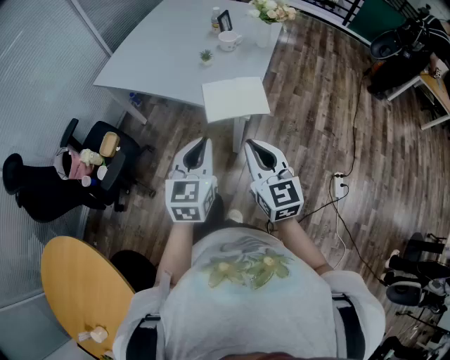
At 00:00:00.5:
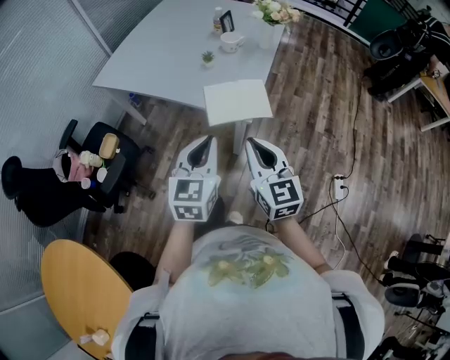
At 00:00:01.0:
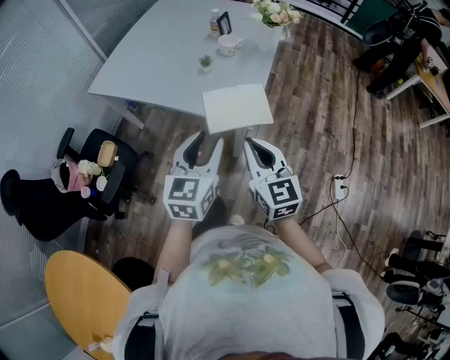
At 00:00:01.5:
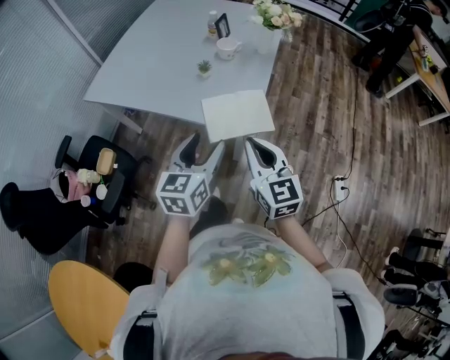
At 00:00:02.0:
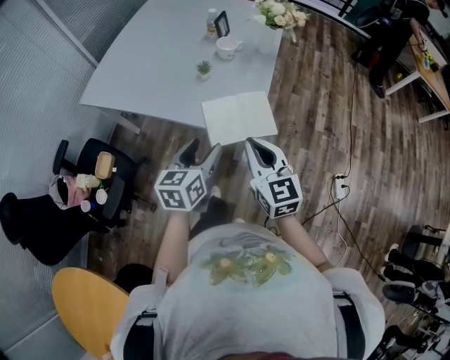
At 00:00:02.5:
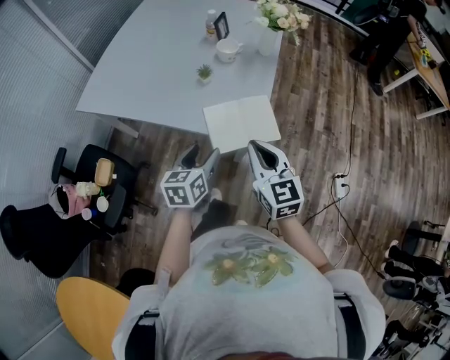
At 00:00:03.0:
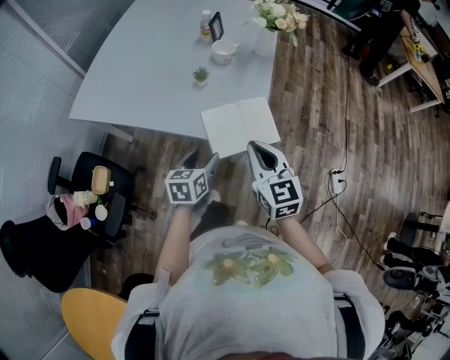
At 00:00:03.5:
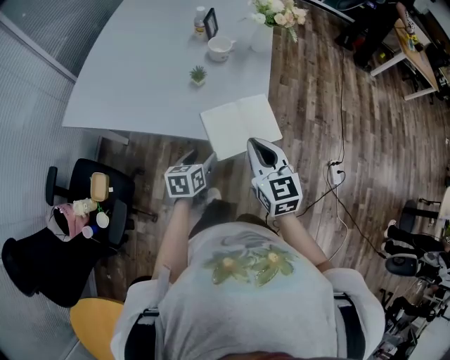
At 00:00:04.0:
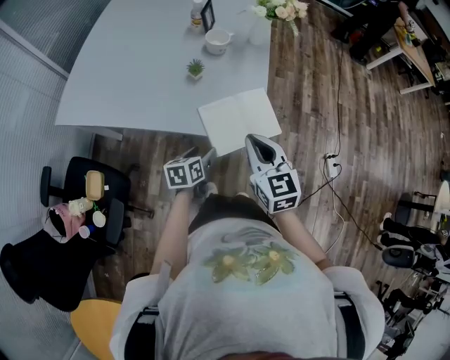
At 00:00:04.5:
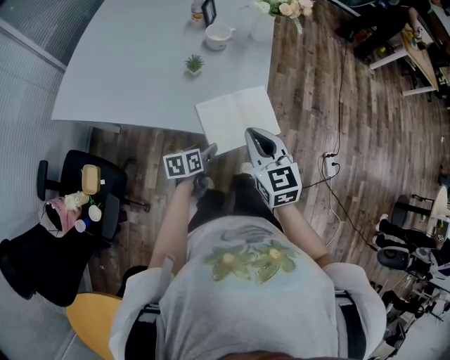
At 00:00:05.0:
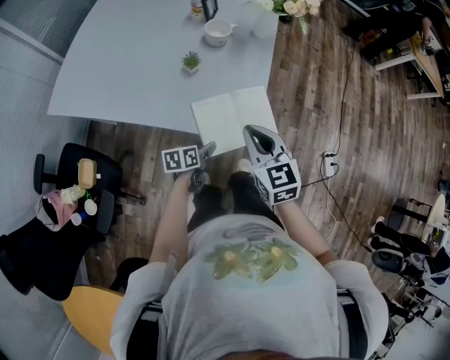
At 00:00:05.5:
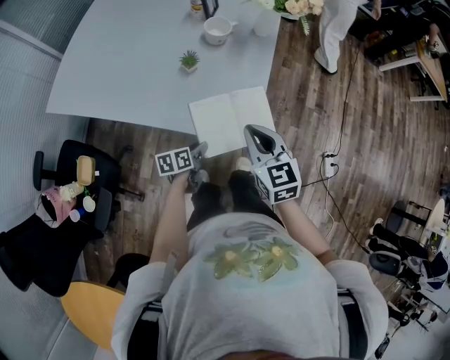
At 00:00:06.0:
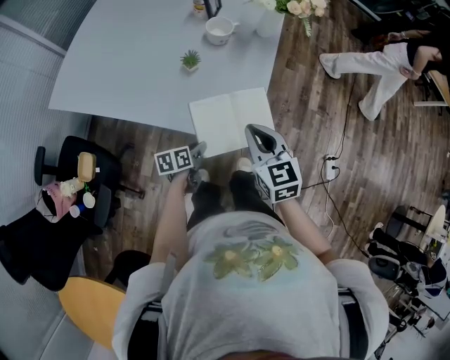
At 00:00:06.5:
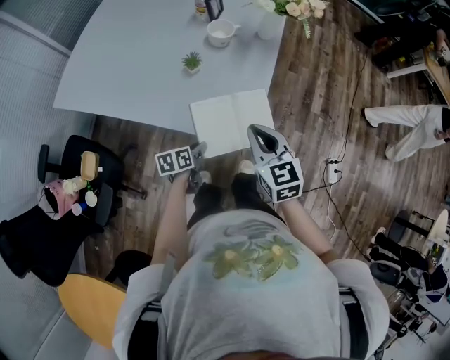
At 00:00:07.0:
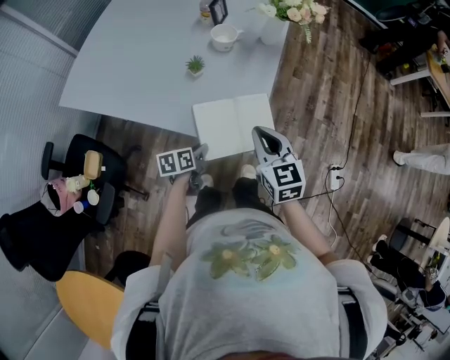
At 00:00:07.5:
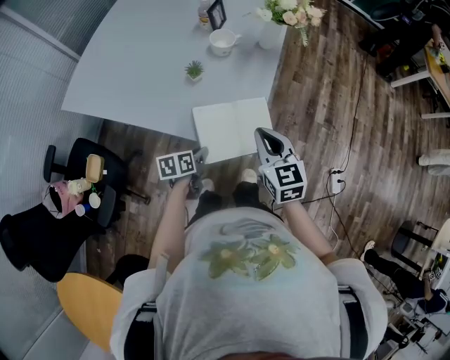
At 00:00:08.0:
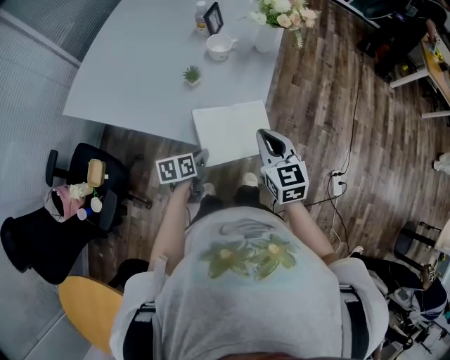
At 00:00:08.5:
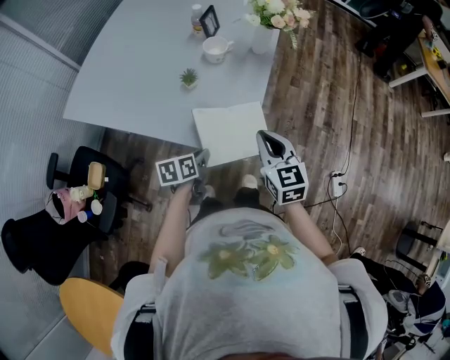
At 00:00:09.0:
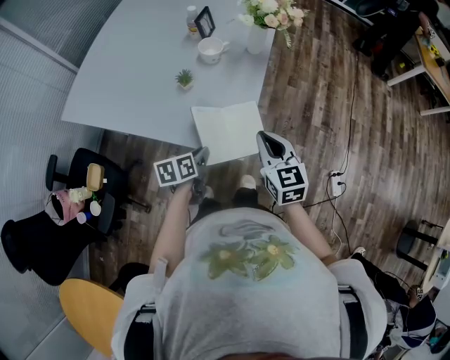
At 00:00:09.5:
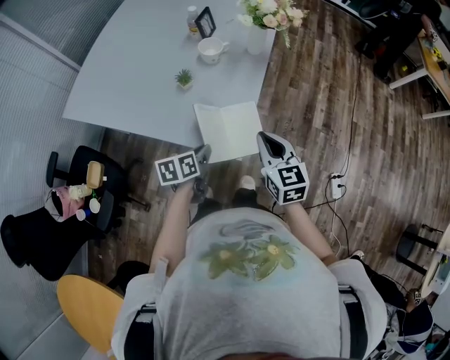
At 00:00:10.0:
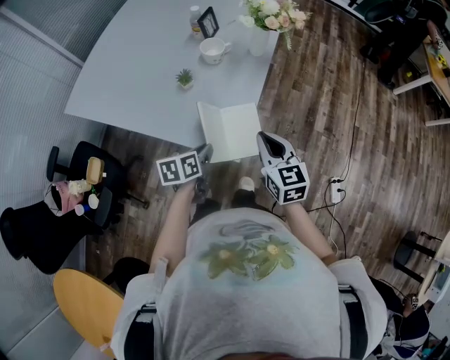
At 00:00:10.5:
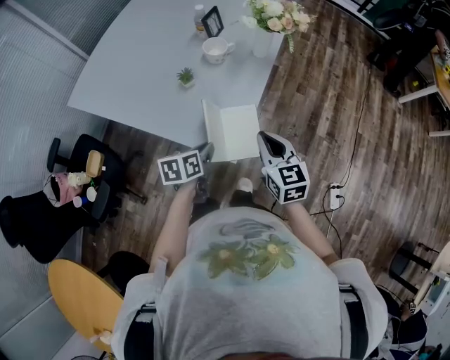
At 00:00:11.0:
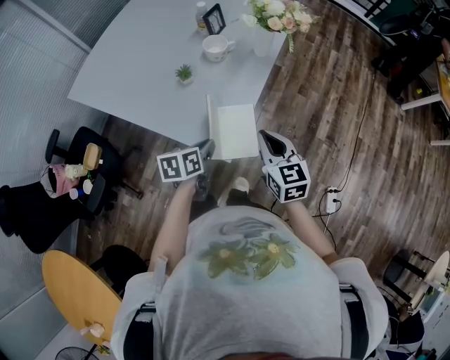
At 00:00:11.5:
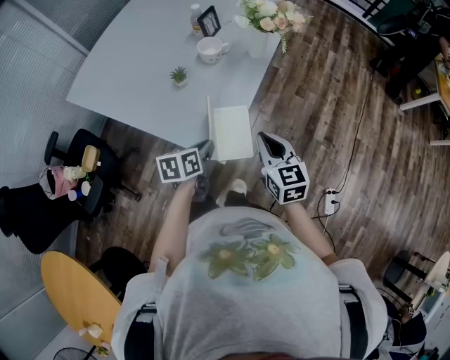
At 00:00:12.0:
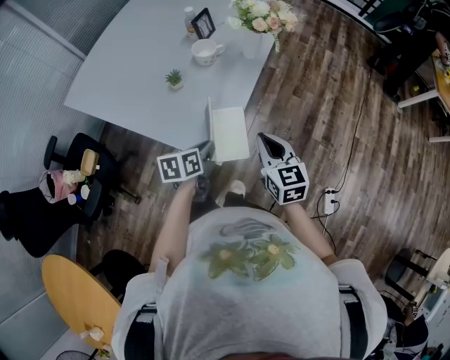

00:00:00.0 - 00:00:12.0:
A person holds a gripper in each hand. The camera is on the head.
00:00:00.0 - 00:00:02.0: The right gripper is displaced forward by some 15 cm, while the left gripper is displaced forward and downward by roughly 15 cm, turns by roughly 20 degrees, and opens its fingers.
00:00:02.0 - 00:00:04.0: The left gripper travels downward by about 20 cm, and swivels about 30 degrees; the right gripper heads forward, covering roughly 5 cm.
00:00:04.0 - 00:00:06.0: The right gripper goes approximately 5 cm forward. The left gripper moves downward, about 5 cm, and closes.
00:00:06.0 - 00:00:08.0: The right gripper moves to the right, about 5 cm. Meanwhile the left gripper shifts about 5 cm upward.
00:00:08.0 - 00:00:10.0: The left gripper travels upward and to the right by roughly 10 cm.
00:00:10.0 - 00:00:12.0: The two grippers go some 5 cm to the right.

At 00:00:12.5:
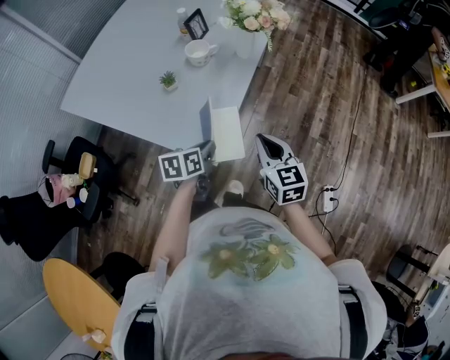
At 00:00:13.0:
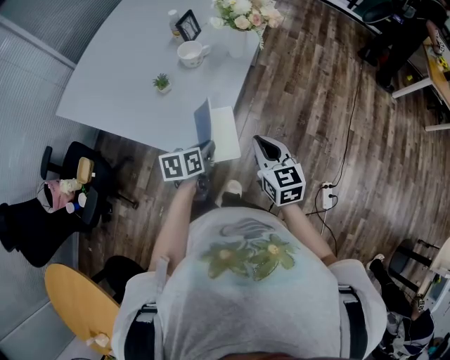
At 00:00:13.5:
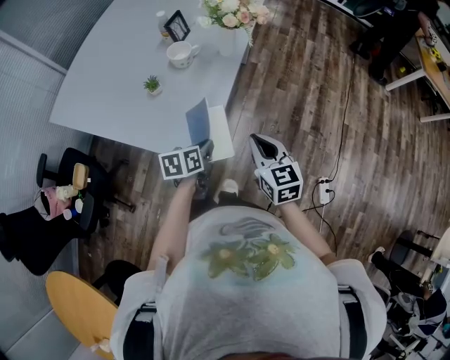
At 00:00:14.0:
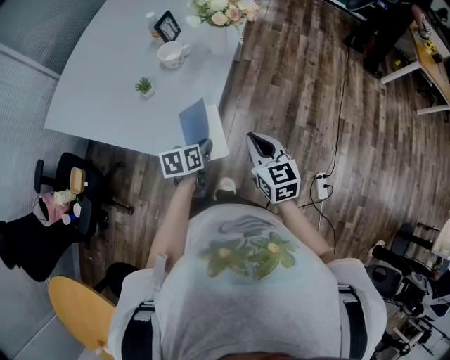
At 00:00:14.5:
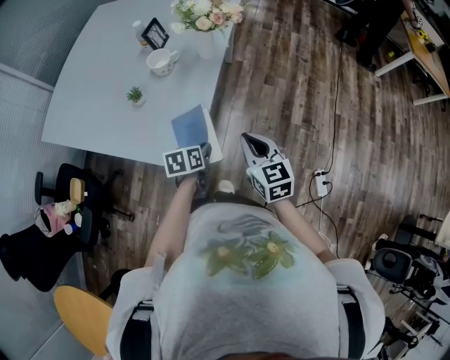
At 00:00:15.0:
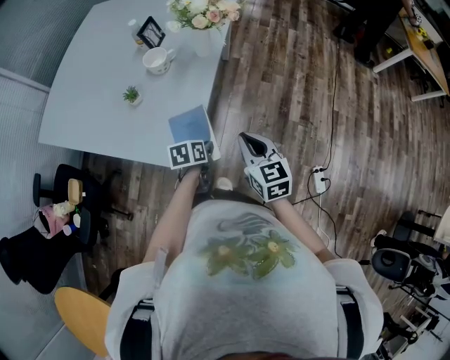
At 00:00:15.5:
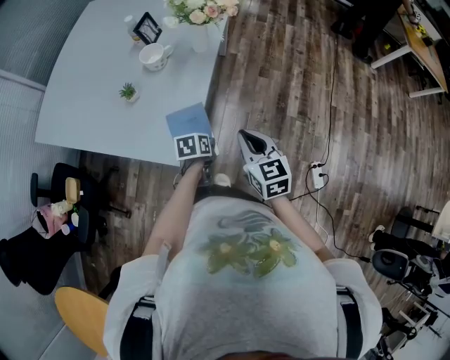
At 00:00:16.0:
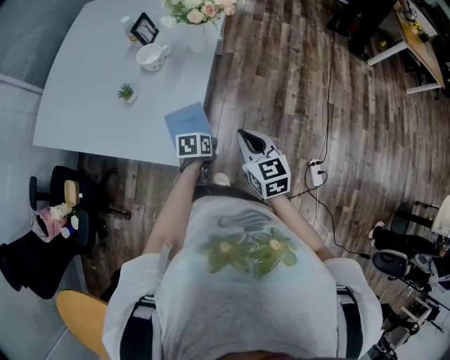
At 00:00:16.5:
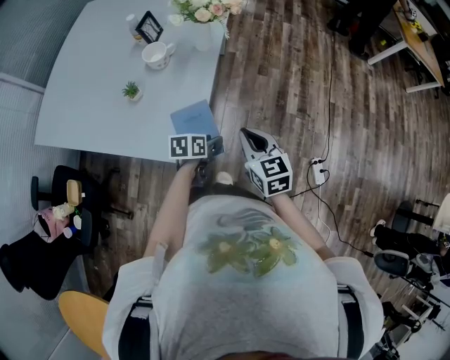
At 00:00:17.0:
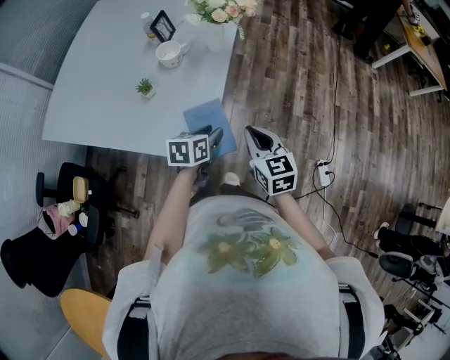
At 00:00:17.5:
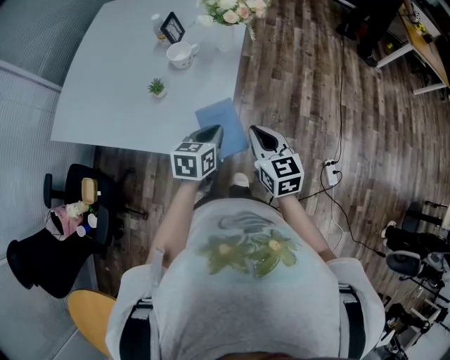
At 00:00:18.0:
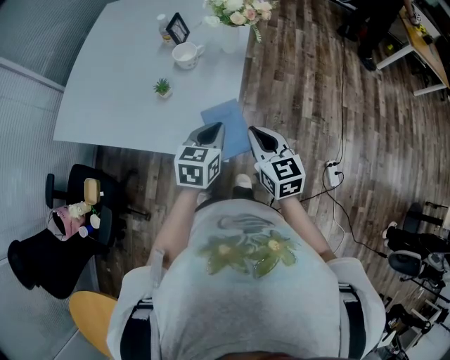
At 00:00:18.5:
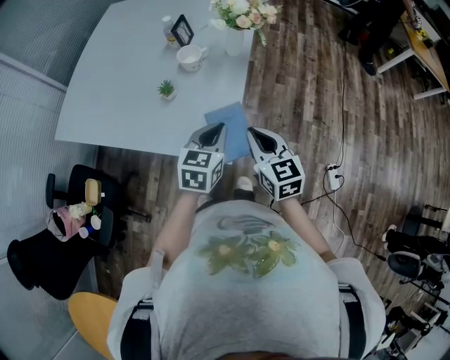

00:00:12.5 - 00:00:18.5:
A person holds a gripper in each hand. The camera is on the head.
00:00:12.5 - 00:00:14.5: The left gripper moves to the right and downward, roughly 10 cm.
00:00:14.5 - 00:00:16.5: The left gripper opens its fingers.
00:00:16.5 - 00:00:18.5: The left gripper travels upward and to the left by some 20 cm, swivels approximately 40 degrees, and closes; the right gripper travels to the left and upward by approximately 10 cm.

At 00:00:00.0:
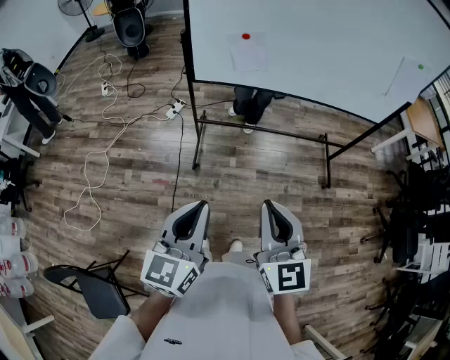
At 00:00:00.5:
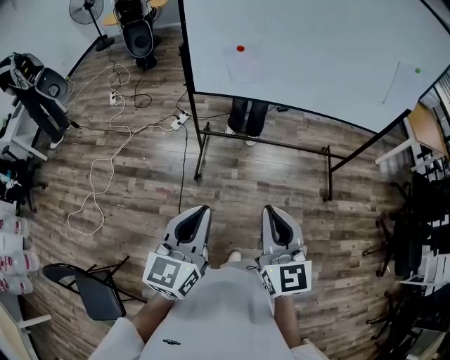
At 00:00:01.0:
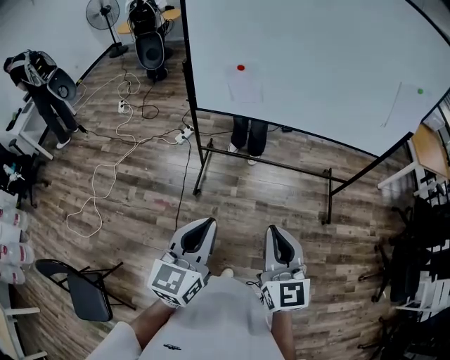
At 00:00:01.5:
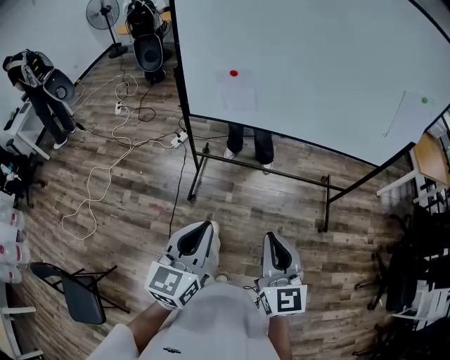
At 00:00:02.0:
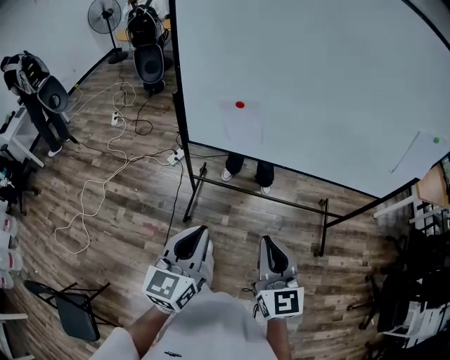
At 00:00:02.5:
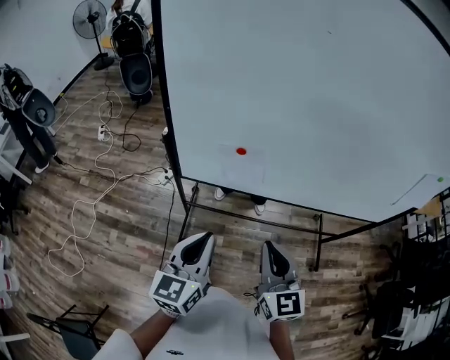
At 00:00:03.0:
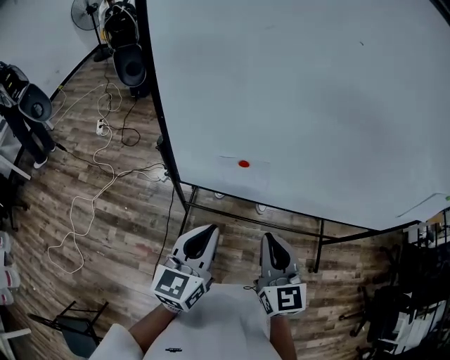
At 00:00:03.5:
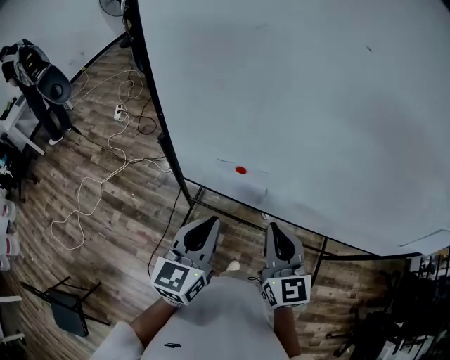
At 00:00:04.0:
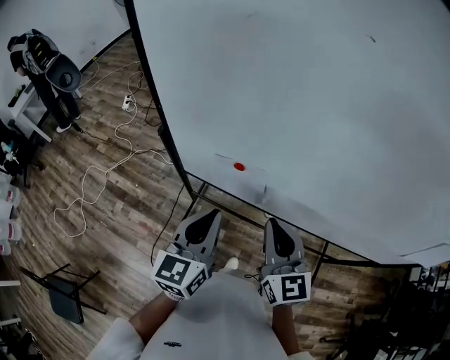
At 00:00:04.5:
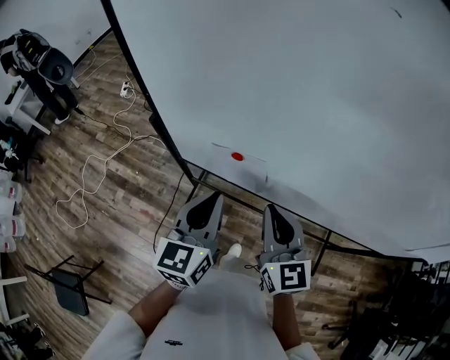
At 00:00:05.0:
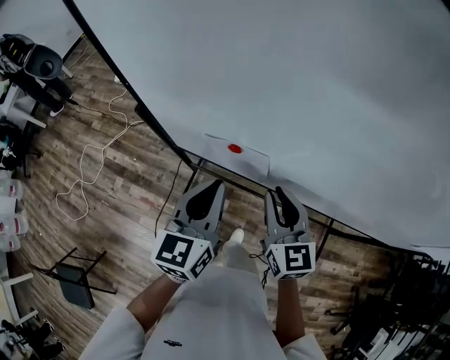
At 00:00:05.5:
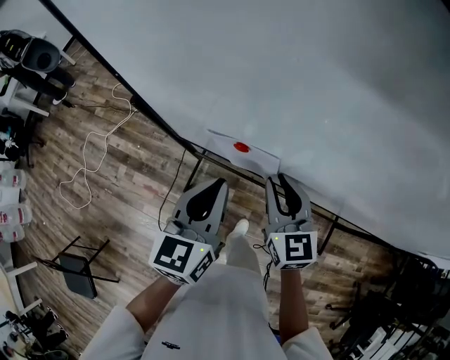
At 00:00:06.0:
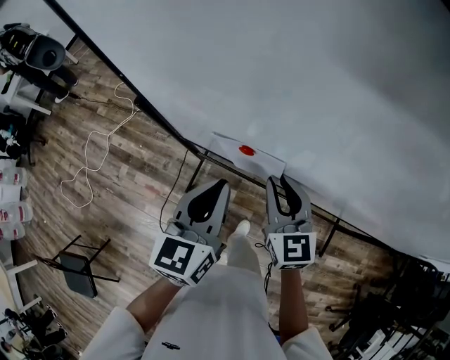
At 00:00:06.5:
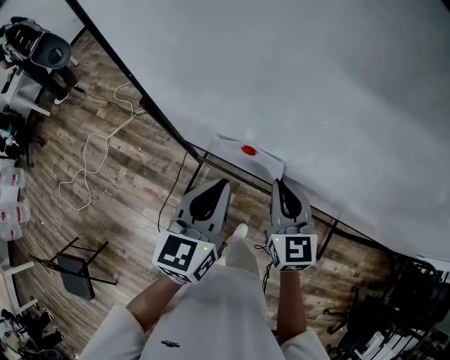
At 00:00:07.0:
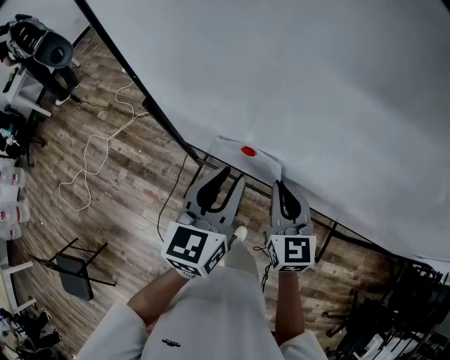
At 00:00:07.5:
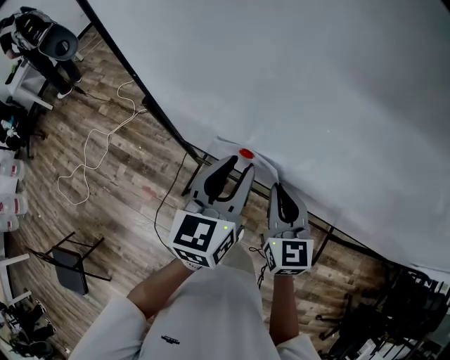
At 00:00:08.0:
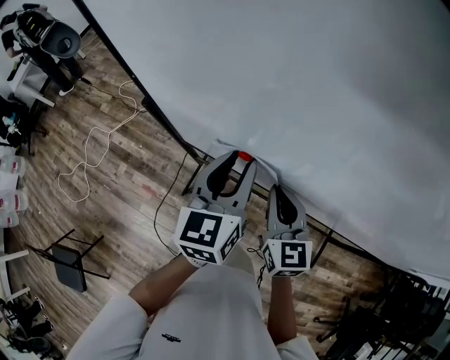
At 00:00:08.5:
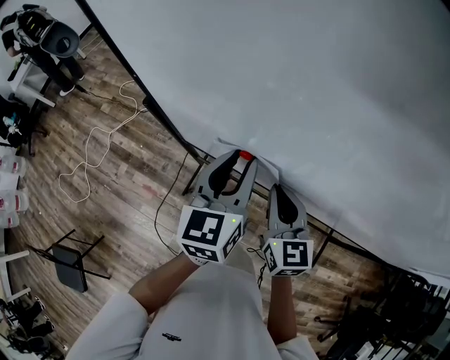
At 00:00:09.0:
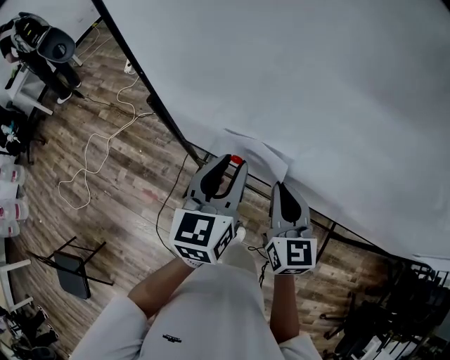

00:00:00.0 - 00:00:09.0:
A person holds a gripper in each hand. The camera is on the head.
00:00:00.0 - 00:00:02.0: The two grippers go some 20 cm forward and to the right.
00:00:02.0 - 00:00:04.5: The two grippers go about 30 cm forward.
00:00:04.5 - 00:00:07.0: The right gripper is displaced downward and forward by about 10 cm. Meanwhile the left gripper shifts by some 5 cm, and opens up.
00:00:07.0 - 00:00:09.0: There are only small adjustments of the grippers.
